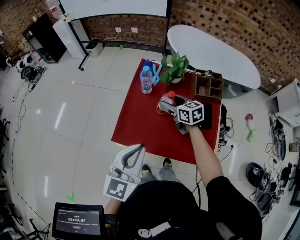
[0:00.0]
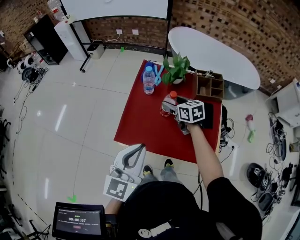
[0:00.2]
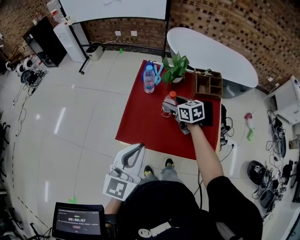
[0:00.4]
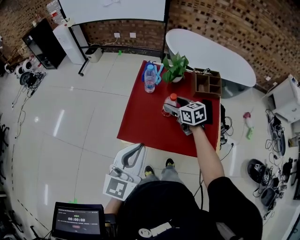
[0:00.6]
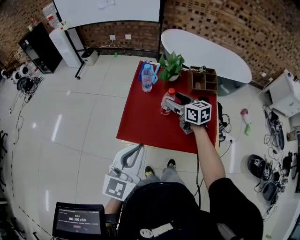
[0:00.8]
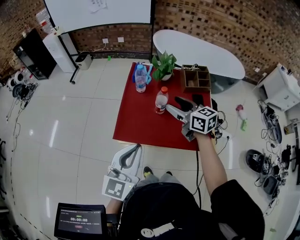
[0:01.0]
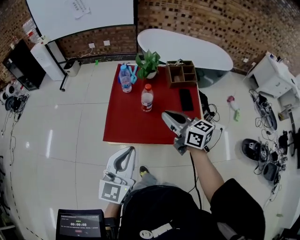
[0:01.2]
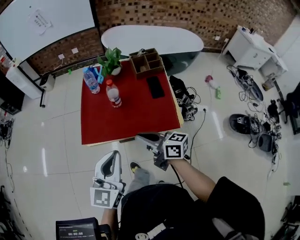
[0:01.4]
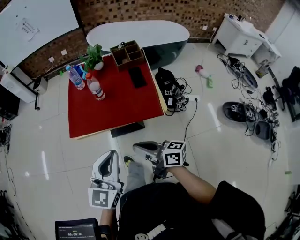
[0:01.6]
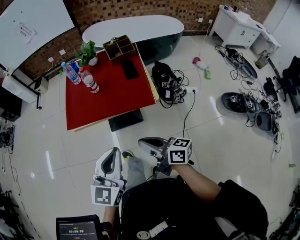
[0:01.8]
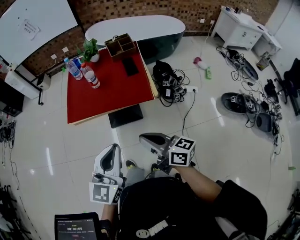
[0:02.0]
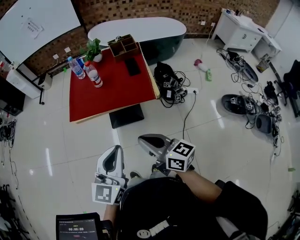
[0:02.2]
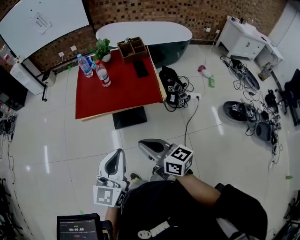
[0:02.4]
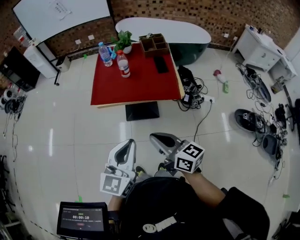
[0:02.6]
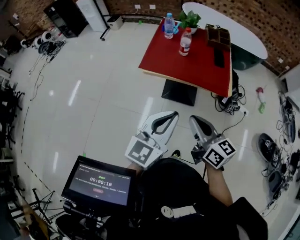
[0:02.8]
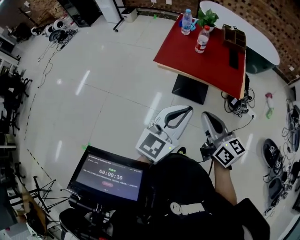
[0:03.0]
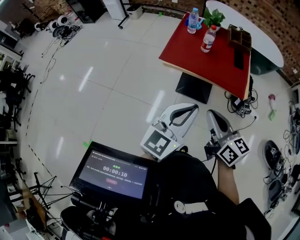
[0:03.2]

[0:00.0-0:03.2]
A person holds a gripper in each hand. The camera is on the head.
0:00.0 to 0:01.6: The right gripper moves backward, some 50 cm, changes its angle by some 40 degrees, and closes up. Meanwhile the left gripper heads backward, covering approximately 25 cm.
0:01.6 to 0:03.2: The left gripper heads backward and to the left, covering roughly 15 cm. Meanwhile the right gripper moves backward, to the left and upward, about 15 cm, and turns by about 20 degrees.

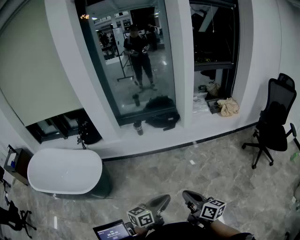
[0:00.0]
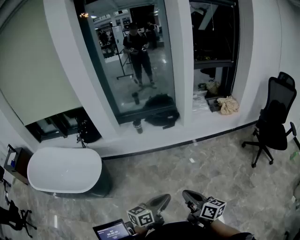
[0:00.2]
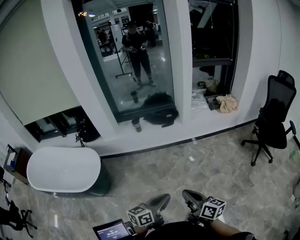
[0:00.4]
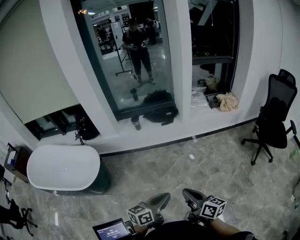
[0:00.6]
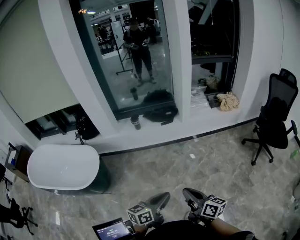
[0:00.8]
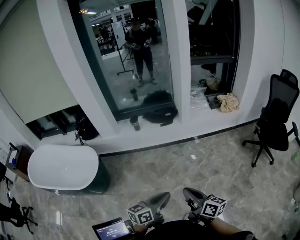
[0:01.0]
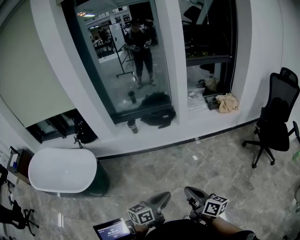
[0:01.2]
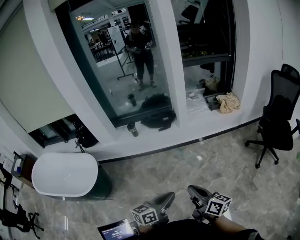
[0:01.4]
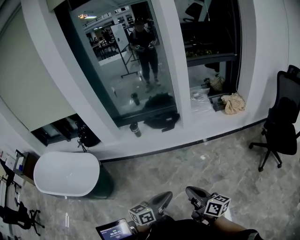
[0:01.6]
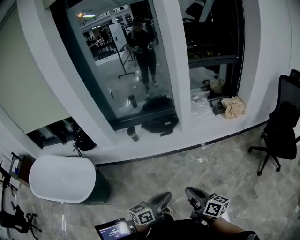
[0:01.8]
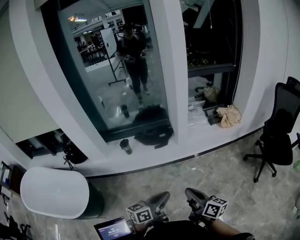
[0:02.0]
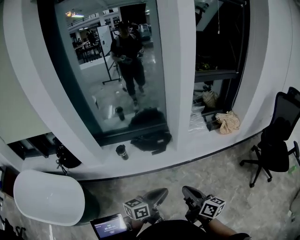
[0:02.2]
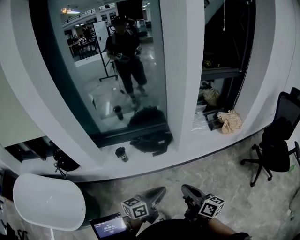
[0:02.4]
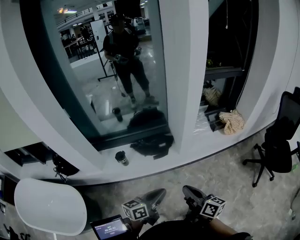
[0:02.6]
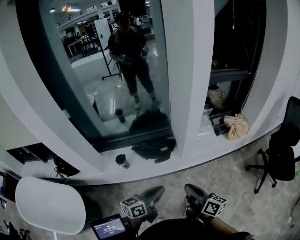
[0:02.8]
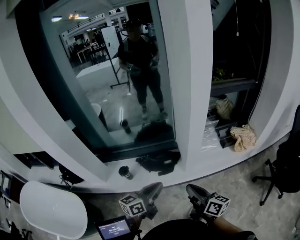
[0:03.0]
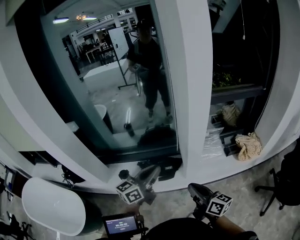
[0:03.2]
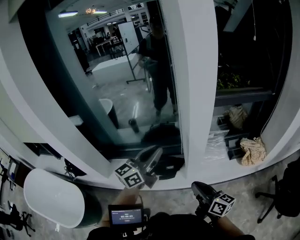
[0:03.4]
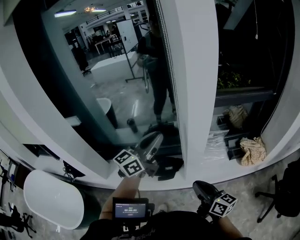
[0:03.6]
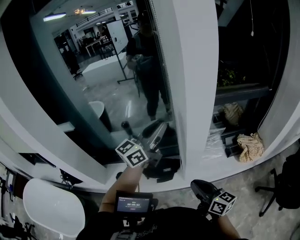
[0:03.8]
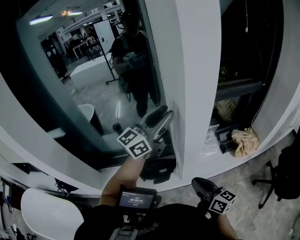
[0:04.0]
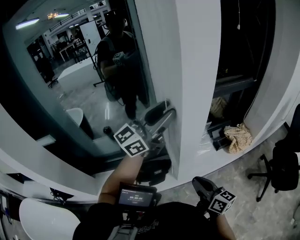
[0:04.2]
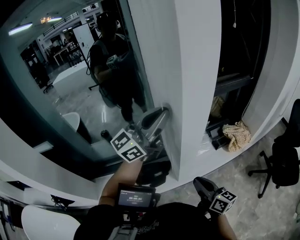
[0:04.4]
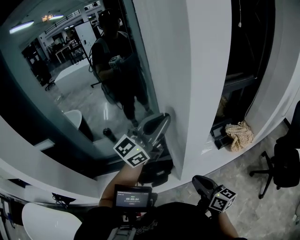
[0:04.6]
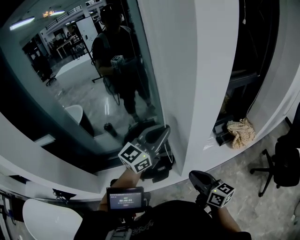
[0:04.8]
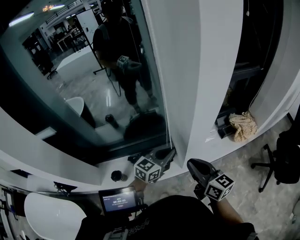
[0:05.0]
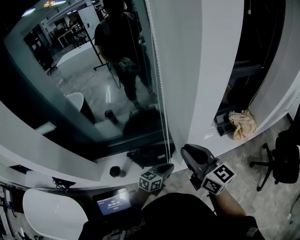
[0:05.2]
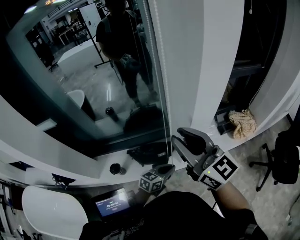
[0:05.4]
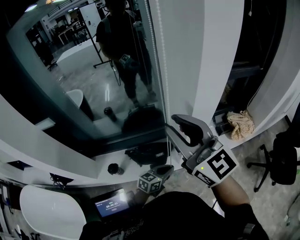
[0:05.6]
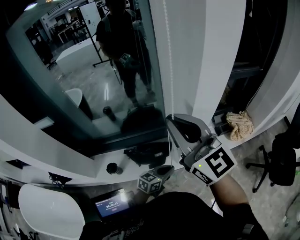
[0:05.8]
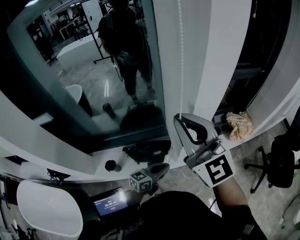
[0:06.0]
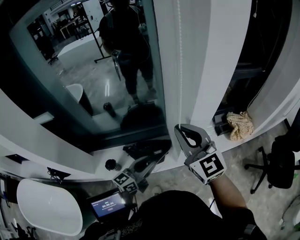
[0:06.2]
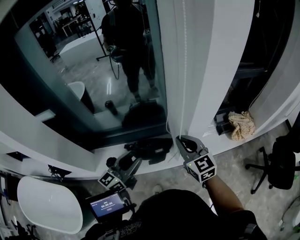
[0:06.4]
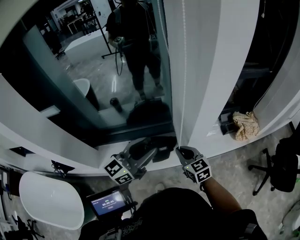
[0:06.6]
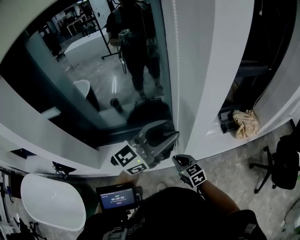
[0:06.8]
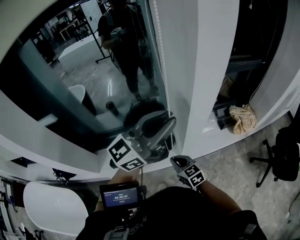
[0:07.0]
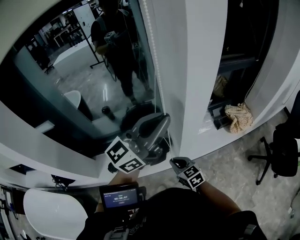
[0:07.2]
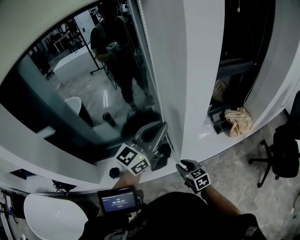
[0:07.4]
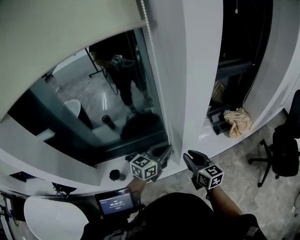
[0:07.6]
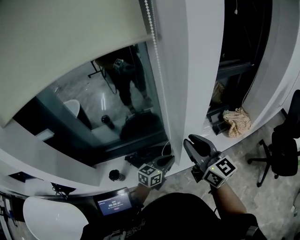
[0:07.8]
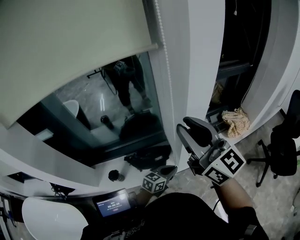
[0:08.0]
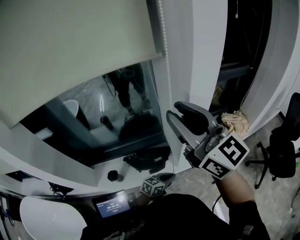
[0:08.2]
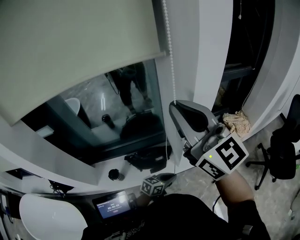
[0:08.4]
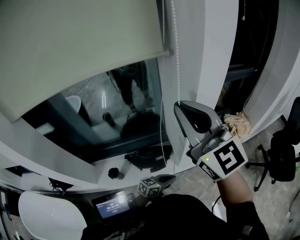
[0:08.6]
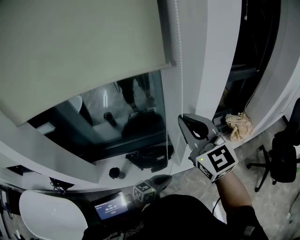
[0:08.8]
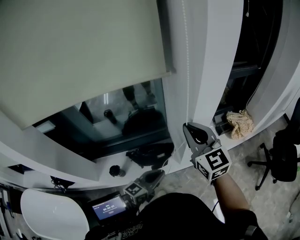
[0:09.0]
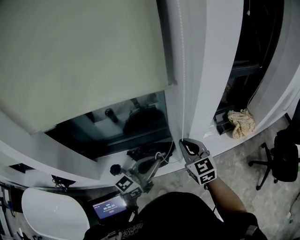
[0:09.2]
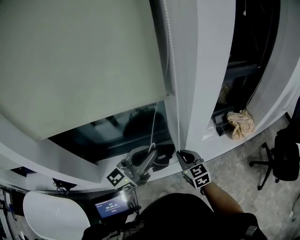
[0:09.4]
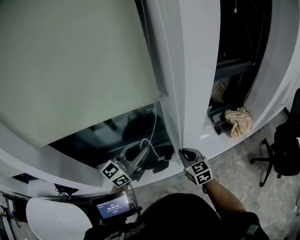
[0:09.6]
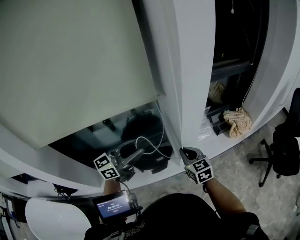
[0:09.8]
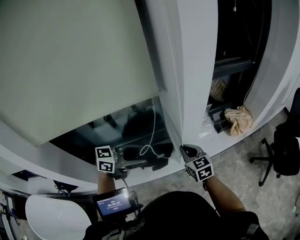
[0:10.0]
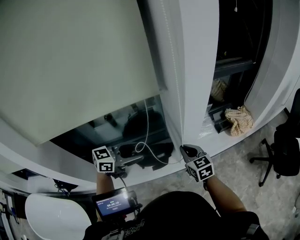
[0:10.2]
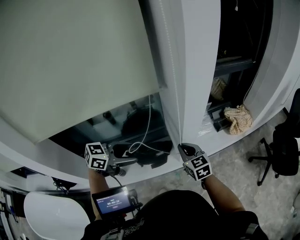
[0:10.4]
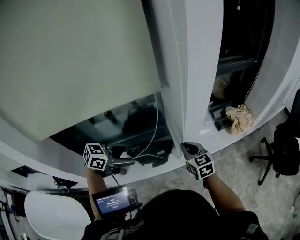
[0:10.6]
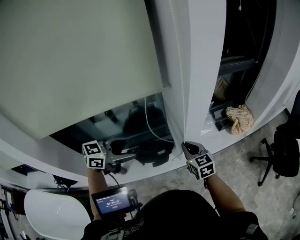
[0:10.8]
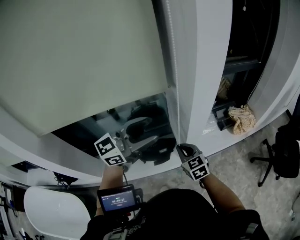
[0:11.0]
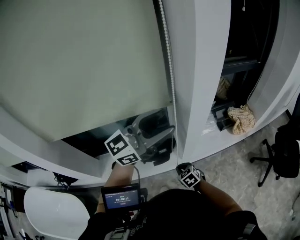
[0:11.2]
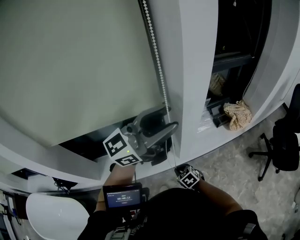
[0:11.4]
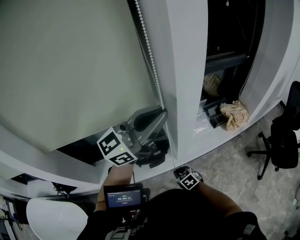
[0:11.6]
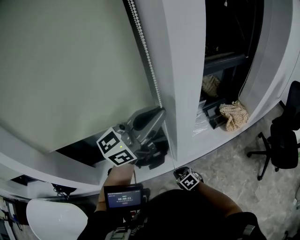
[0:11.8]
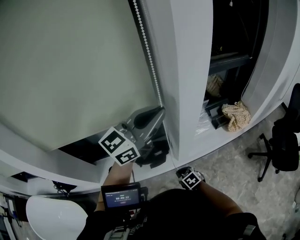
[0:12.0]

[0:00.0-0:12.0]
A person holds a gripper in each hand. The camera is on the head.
0:00.0 to 0:01.6: The grippers both shift forward and to the right by approximately 15 cm.
0:01.6 to 0:03.0: The two grippers travel together, forward, roughly 50 cm.
0:03.0 to 0:04.4: The right gripper shifts by approximately 15 cm. Meanwhile the left gripper moves roughly 40 cm, rotates approximately 50 degrees, and opens and closes again.
0:04.4 to 0:06.0: The left gripper travels downward by about 40 cm, and points its fingers roughly 40 degrees further downward. The right gripper is displaced upward and to the left by about 25 cm, and rolls counterclockwise, seen from behind, by some 50 degrees.
0:06.0 to 0:07.6: The left gripper shifts approximately 10 cm forward, reaches approximately 35 cm upward, then returns, and opens and closes again; the right gripper moves downward, approximately 30 cm, and changes its angle by about 40 degrees.
0:07.6 to 0:09.0: The left gripper travels backward by roughly 10 cm, and reaches roughly 15 cm downward, then returns; the right gripper shifts about 20 cm upward, turns by approximately 30 degrees, and closes its fingers.
0:09.0 to 0:10.4: The right gripper travels downward by about 20 cm, and changes its angle by some 20 degrees. Meanwhile the left gripper travels upward and to the left by about 15 cm, changes its angle by approximately 30 degrees, and opens.
0:10.4 to 0:12.0: The left gripper travels upward, to the right and forward by about 25 cm, tilts its fingers approximately 30 degrees upward, and closes up; the right gripper goes some 25 cm downward and backward, and points its fingers roughly 30 degrees further downward.

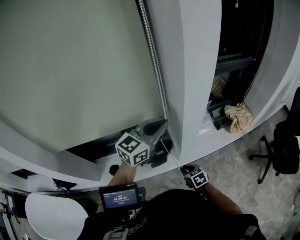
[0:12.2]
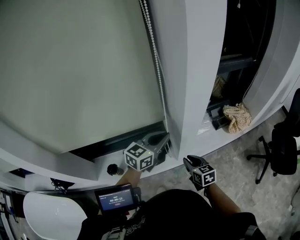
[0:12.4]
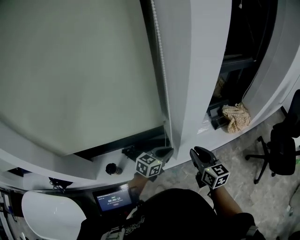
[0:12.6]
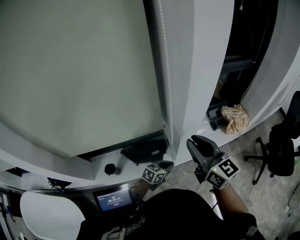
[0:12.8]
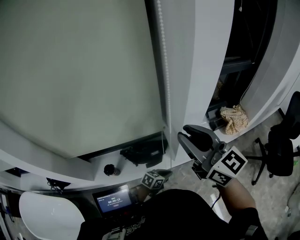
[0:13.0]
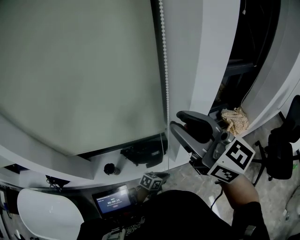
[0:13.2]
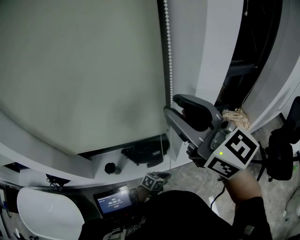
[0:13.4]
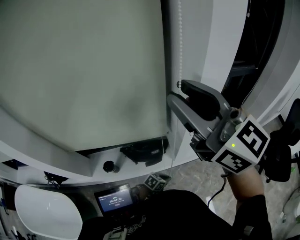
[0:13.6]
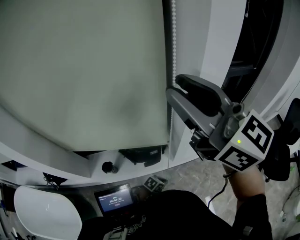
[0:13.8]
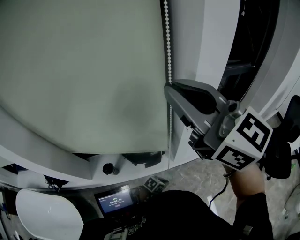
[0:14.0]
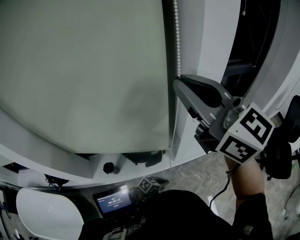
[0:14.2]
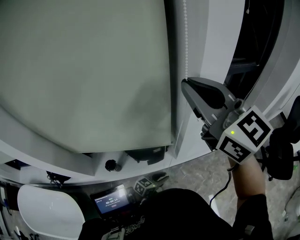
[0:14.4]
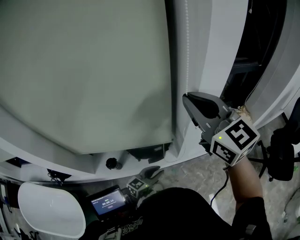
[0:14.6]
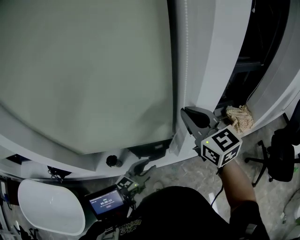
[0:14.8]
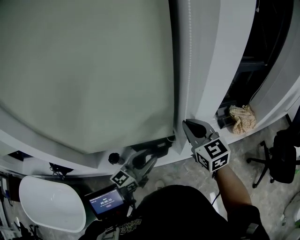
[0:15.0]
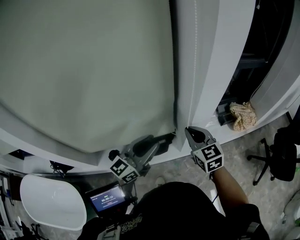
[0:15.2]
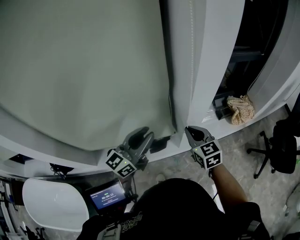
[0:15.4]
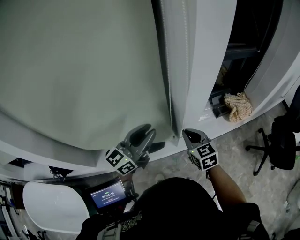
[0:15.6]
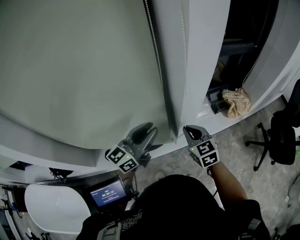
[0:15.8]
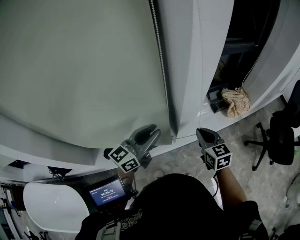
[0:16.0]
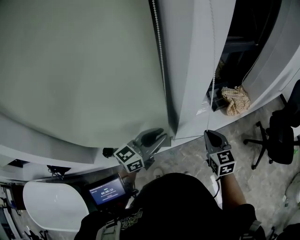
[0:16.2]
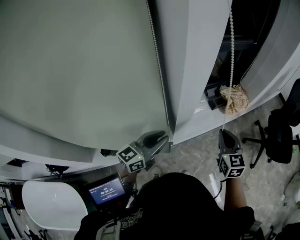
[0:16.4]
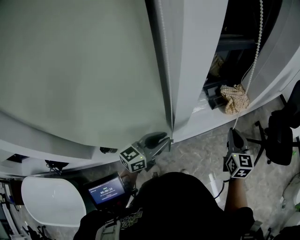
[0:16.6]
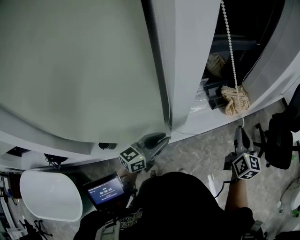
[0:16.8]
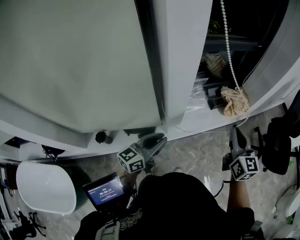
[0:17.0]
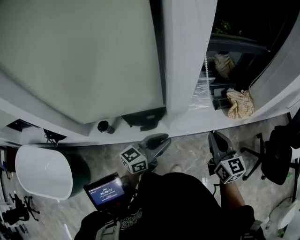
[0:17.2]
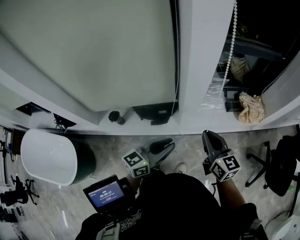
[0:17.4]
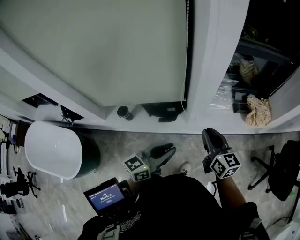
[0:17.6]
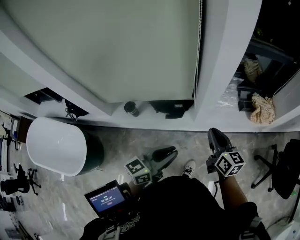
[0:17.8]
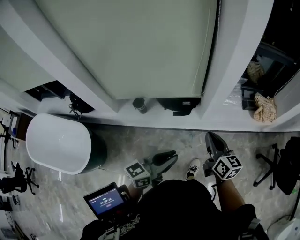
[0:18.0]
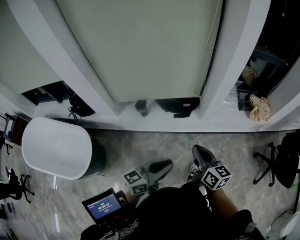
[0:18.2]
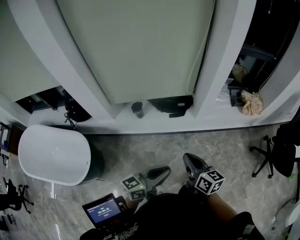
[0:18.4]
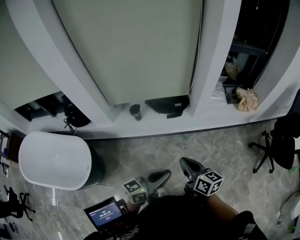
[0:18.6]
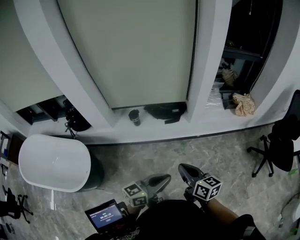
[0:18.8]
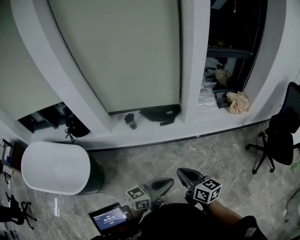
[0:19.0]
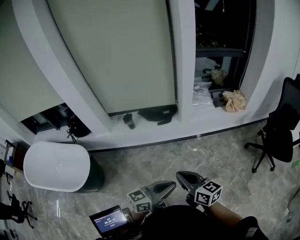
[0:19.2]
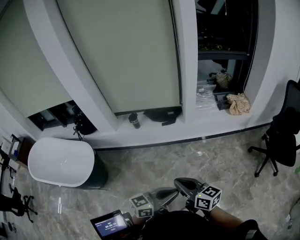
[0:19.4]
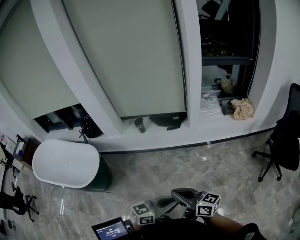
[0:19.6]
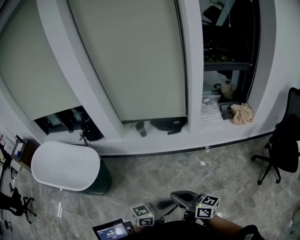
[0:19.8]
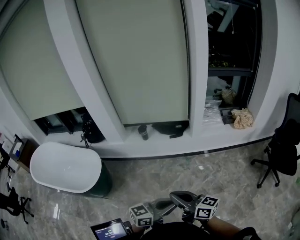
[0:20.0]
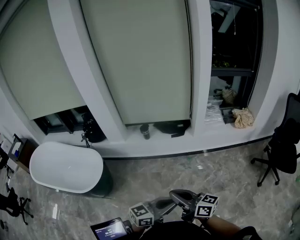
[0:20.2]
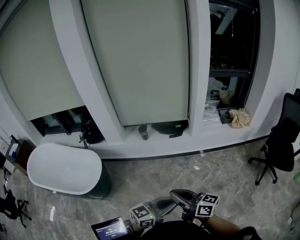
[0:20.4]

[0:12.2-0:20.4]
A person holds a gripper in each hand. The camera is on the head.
0:12.2 to 0:13.8: The left gripper is displaced downward by about 40 cm, and points its fingers some 50 degrees further downward; the right gripper heads upward, covering approximately 60 cm, and tips its fingers upward by approximately 60 degrees.
0:13.8 to 0:15.4: The right gripper travels downward by some 40 cm, points its fingers approximately 40 degrees further downward, and closes. The left gripper shifts approximately 40 cm upward, tips its fingers upward by some 60 degrees, and opens up.
0:15.4 to 0:17.2: The right gripper heads to the right, covering approximately 20 cm; the left gripper is displaced to the right and downward by approximately 20 cm.
0:17.2 to 0:18.8: Both grippers are carried backward and to the left, approximately 40 cm. The right gripper turns by roughly 30 degrees.
0:18.8 to 0:20.4: Both grippers travel together backward, about 20 cm. The right gripper swivels about 30 degrees.
